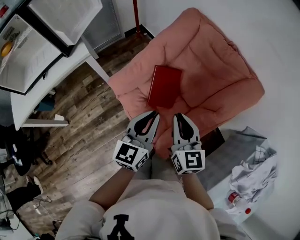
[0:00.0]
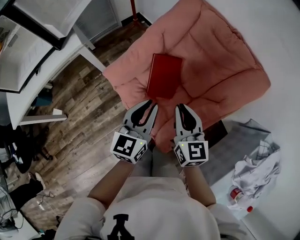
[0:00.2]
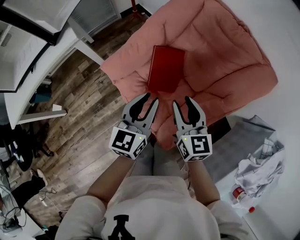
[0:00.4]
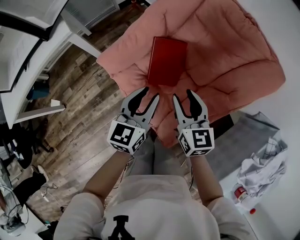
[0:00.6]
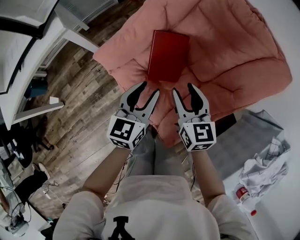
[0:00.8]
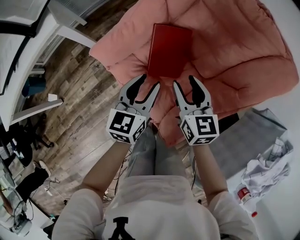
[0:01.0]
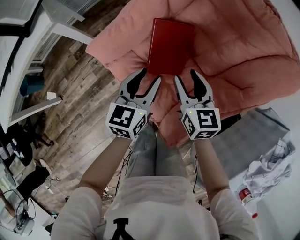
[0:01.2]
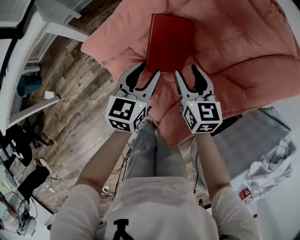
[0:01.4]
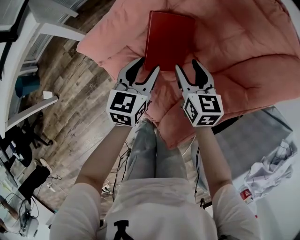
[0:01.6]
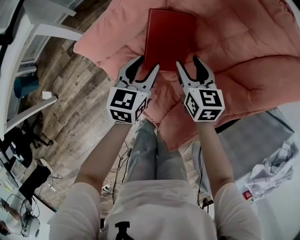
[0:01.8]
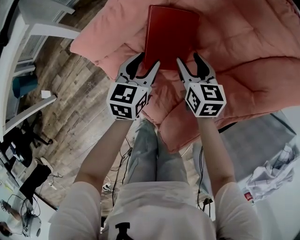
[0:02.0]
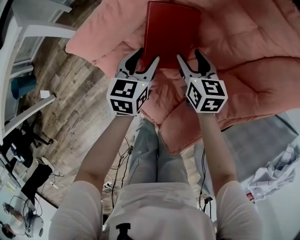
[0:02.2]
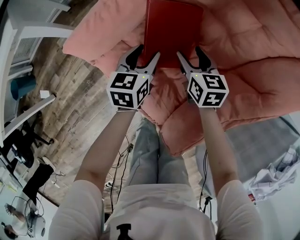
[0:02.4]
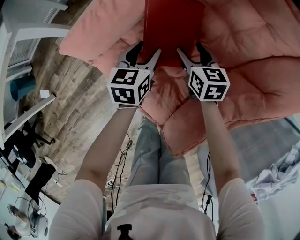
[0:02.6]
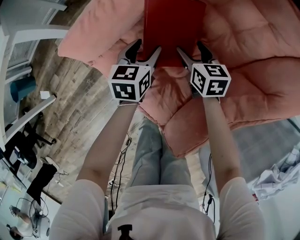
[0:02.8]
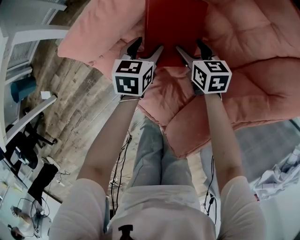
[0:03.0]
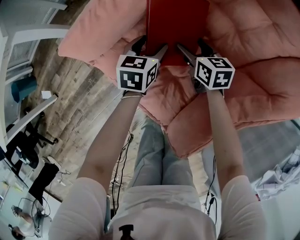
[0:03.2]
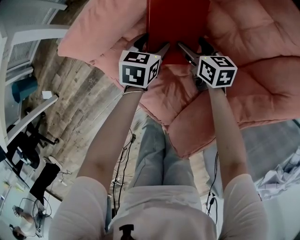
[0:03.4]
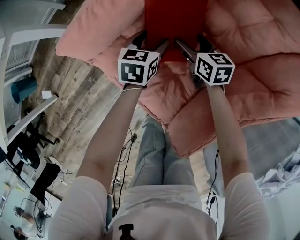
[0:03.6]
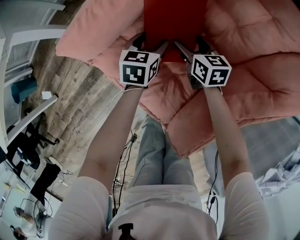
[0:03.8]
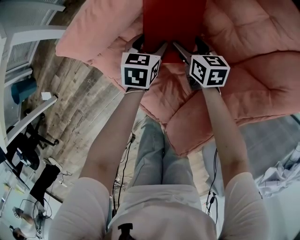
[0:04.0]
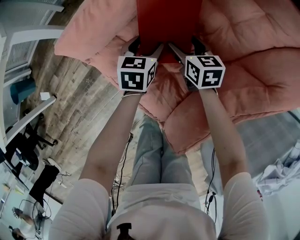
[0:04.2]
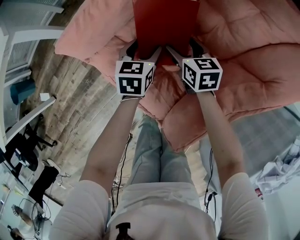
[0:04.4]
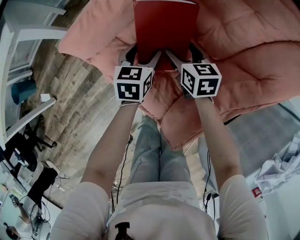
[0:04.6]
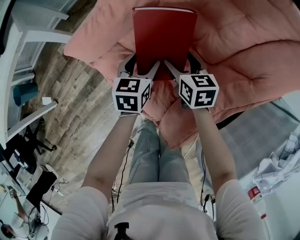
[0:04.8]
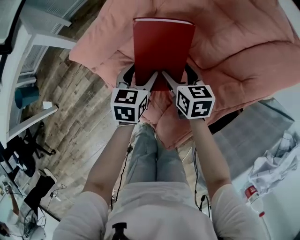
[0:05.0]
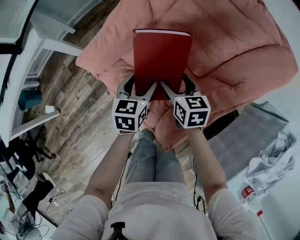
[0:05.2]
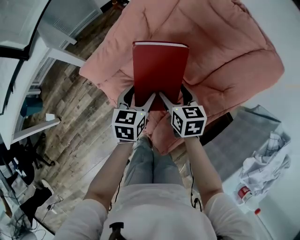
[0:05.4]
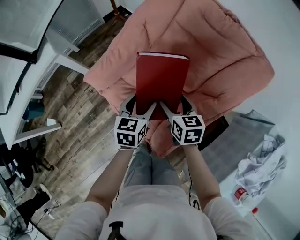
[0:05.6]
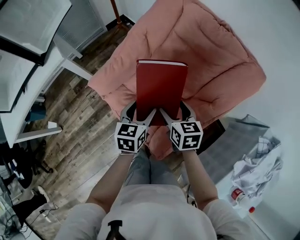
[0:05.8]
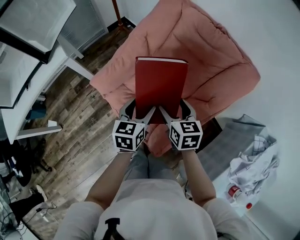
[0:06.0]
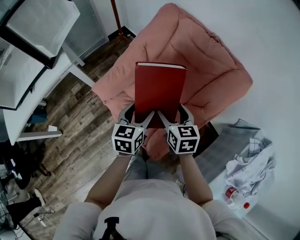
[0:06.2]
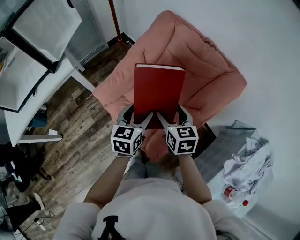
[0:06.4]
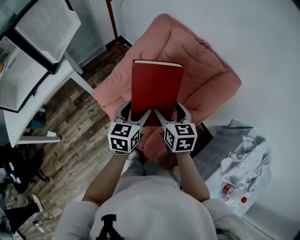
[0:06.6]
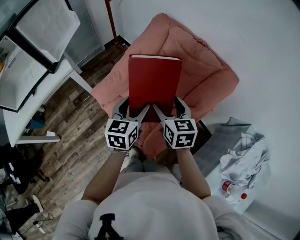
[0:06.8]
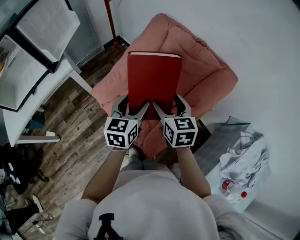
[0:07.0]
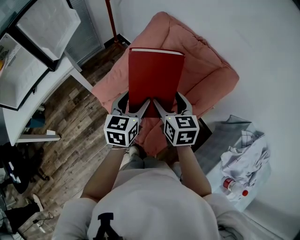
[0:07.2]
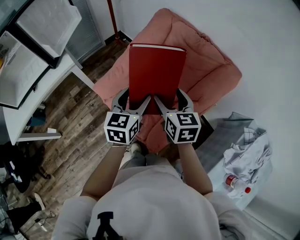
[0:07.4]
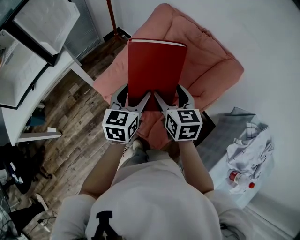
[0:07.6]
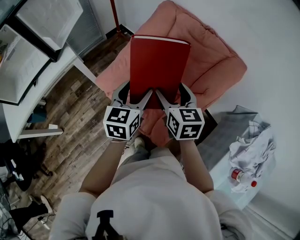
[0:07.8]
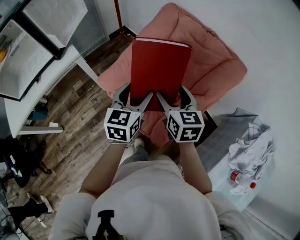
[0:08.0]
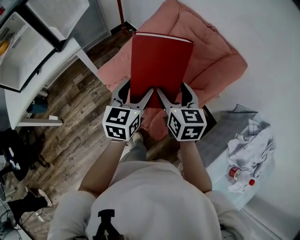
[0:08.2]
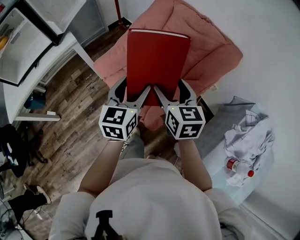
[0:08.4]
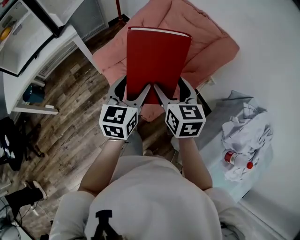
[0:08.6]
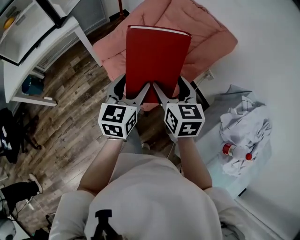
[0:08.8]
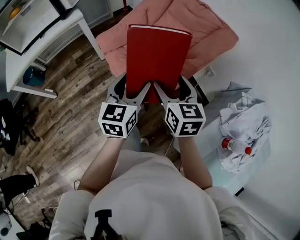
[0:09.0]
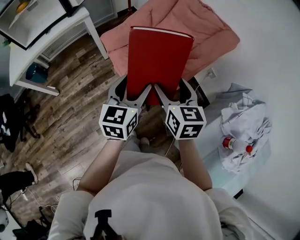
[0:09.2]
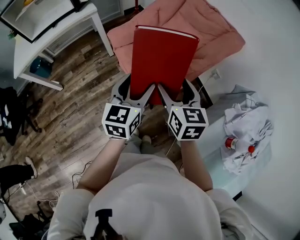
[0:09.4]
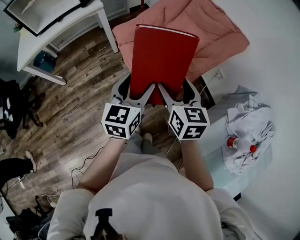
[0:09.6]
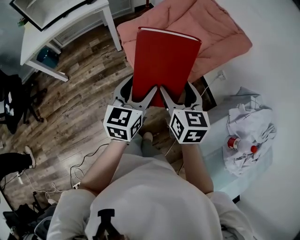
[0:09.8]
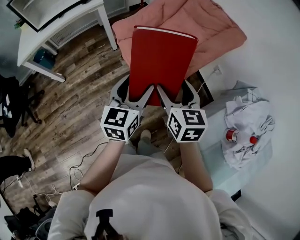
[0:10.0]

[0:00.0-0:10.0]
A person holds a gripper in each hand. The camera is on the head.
0:00.0 to 0:01.4: The two grippers go about 25 cm downward and forward. The left gripper opens up. The right gripper opens up.
0:01.4 to 0:02.8: The grippers both shift downward and forward by about 20 cm.
0:02.8 to 0:04.2: The grippers make only small movements.
0:04.2 to 0:05.8: Both grippers travel together upward and backward, some 25 cm.
0:05.8 to 0:07.2: Both grippers travel together upward, roughly 15 cm.
0:07.2 to 0:08.6: The two grippers go approximately 15 cm backward.
0:08.6 to 0:10.0: Both grippers travel together backward, some 20 cm.

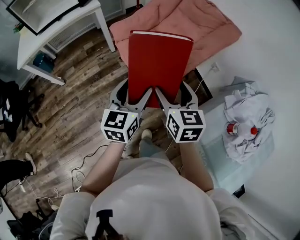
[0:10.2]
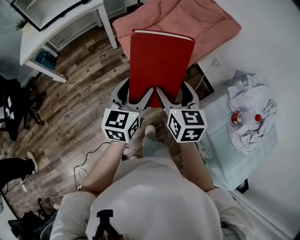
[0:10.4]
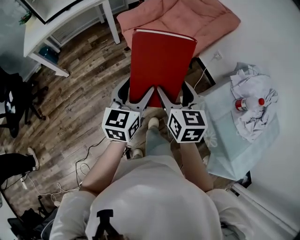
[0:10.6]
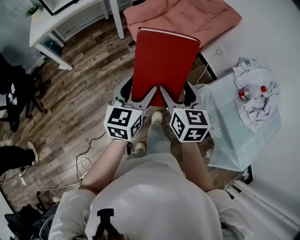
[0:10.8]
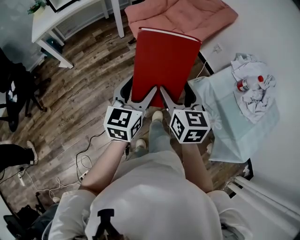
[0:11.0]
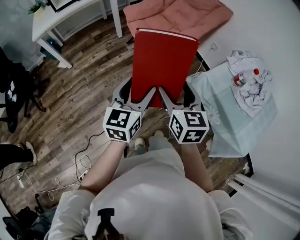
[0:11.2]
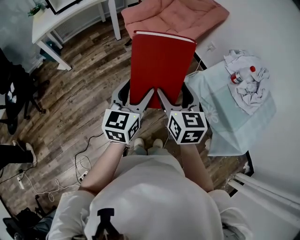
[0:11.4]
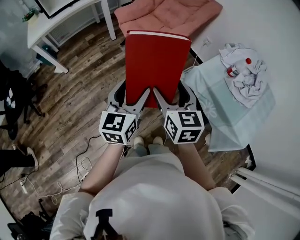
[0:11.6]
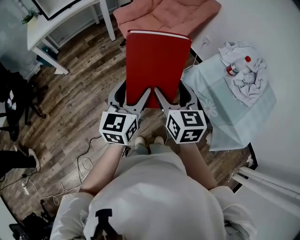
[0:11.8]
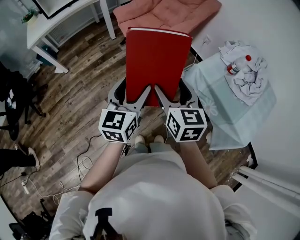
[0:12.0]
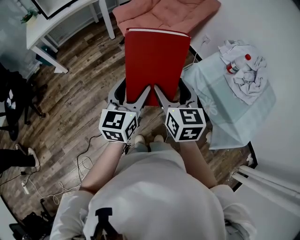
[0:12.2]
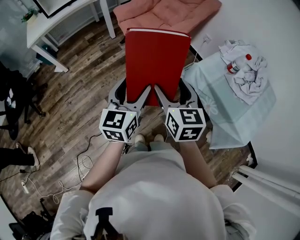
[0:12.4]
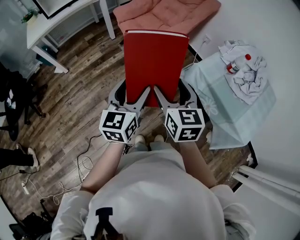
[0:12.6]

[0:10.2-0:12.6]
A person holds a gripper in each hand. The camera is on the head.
0:10.2 to 0:11.4: Both grippers move backward, roughly 30 cm.
0:11.4 to 0:12.6: There are only small adjustments of the grippers.

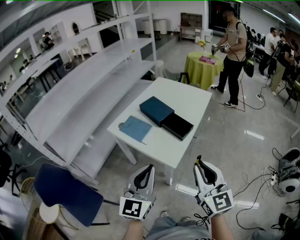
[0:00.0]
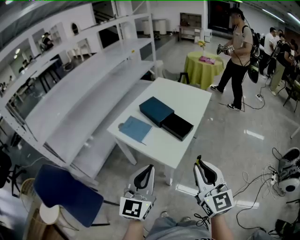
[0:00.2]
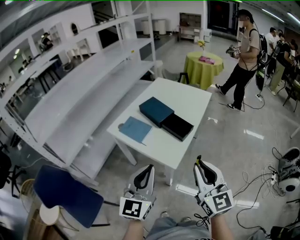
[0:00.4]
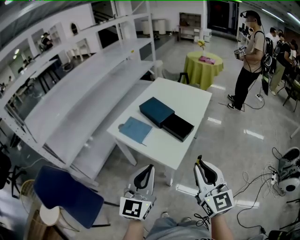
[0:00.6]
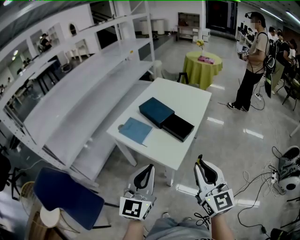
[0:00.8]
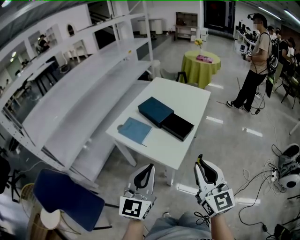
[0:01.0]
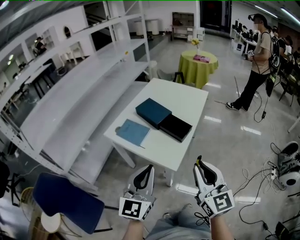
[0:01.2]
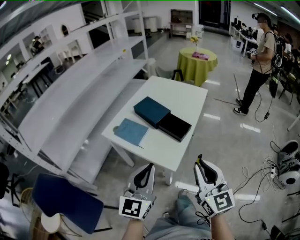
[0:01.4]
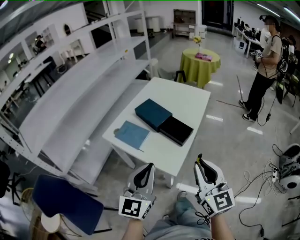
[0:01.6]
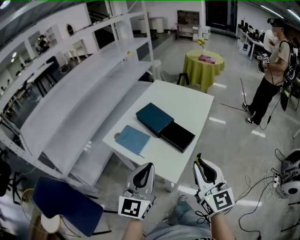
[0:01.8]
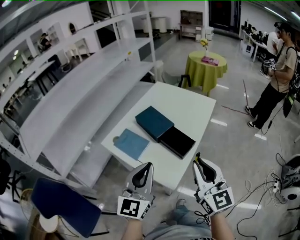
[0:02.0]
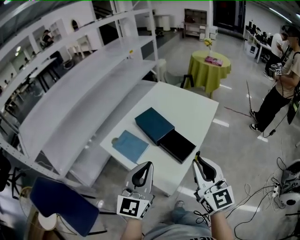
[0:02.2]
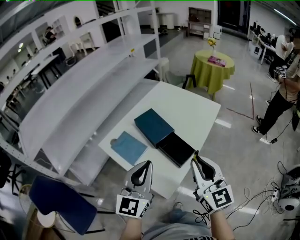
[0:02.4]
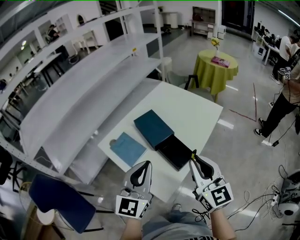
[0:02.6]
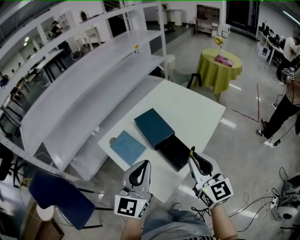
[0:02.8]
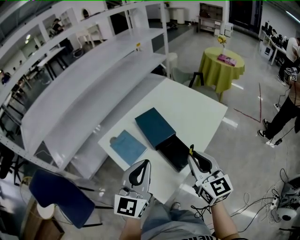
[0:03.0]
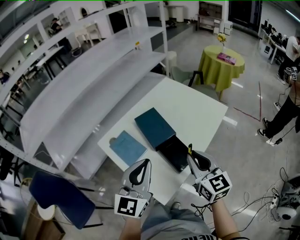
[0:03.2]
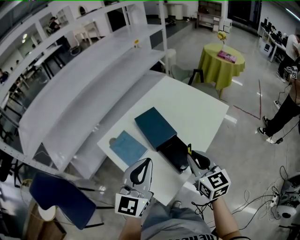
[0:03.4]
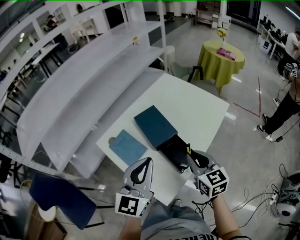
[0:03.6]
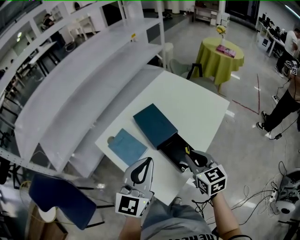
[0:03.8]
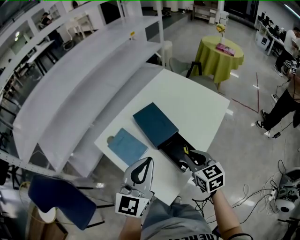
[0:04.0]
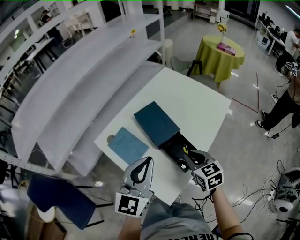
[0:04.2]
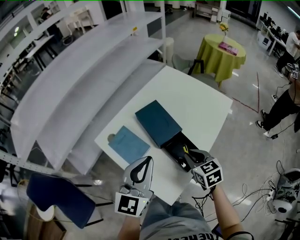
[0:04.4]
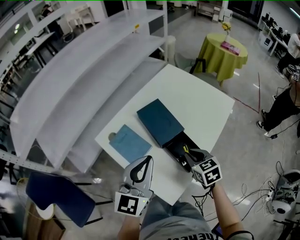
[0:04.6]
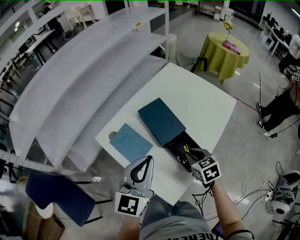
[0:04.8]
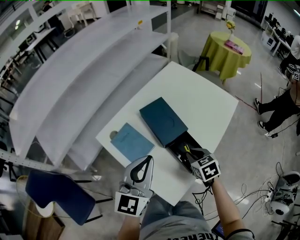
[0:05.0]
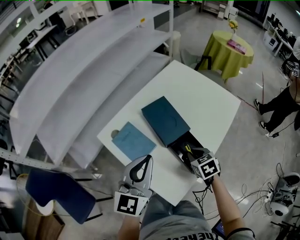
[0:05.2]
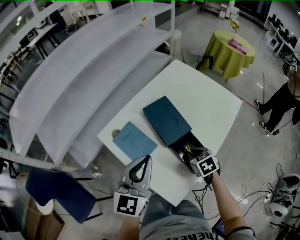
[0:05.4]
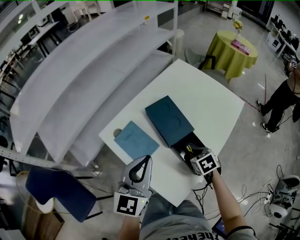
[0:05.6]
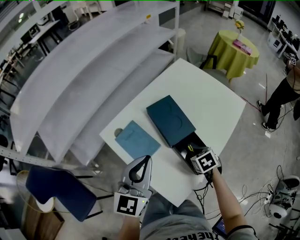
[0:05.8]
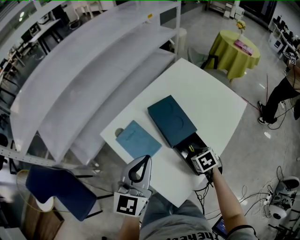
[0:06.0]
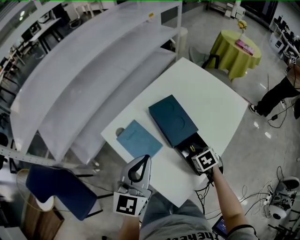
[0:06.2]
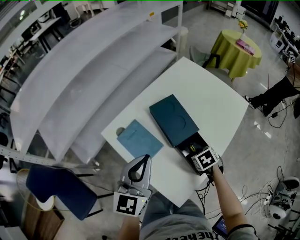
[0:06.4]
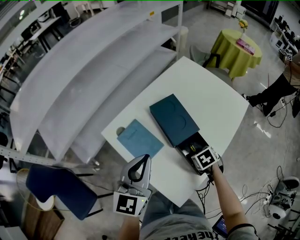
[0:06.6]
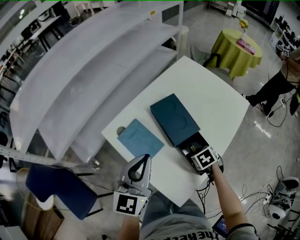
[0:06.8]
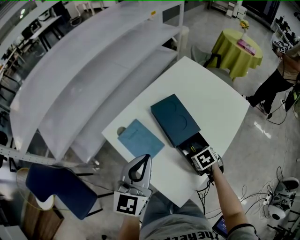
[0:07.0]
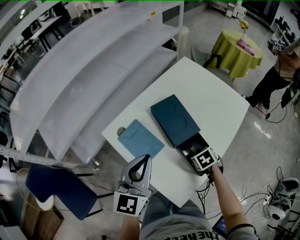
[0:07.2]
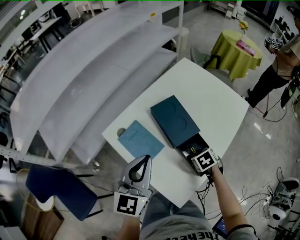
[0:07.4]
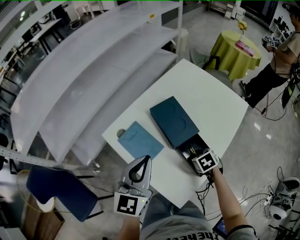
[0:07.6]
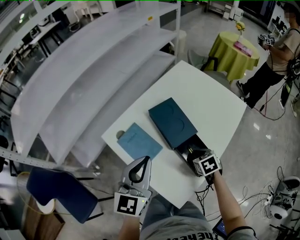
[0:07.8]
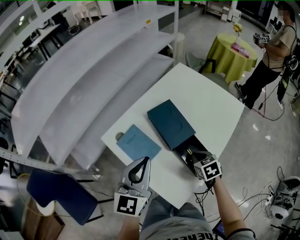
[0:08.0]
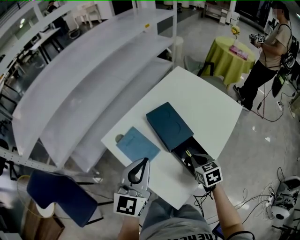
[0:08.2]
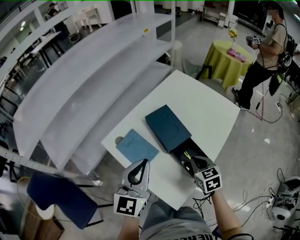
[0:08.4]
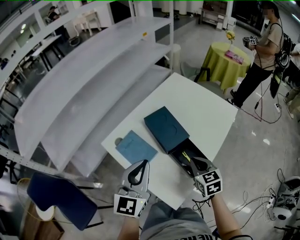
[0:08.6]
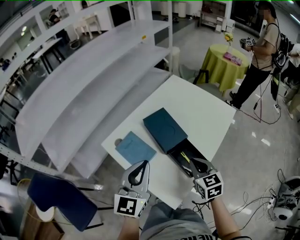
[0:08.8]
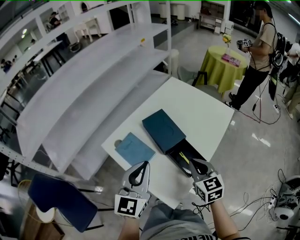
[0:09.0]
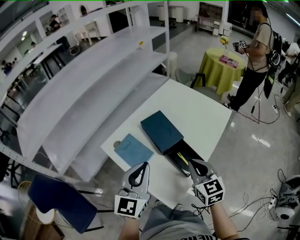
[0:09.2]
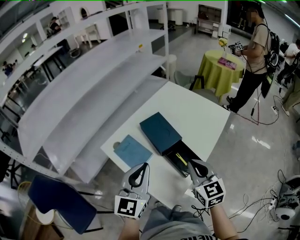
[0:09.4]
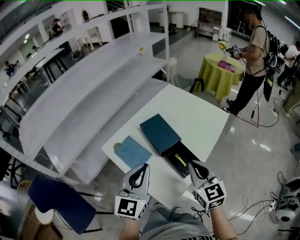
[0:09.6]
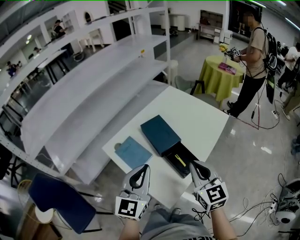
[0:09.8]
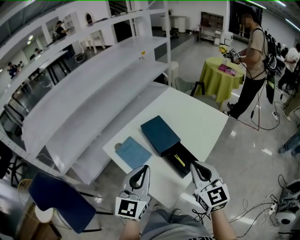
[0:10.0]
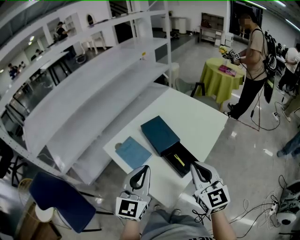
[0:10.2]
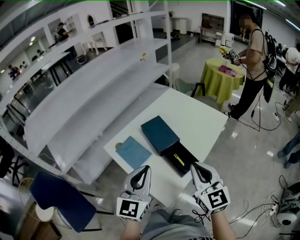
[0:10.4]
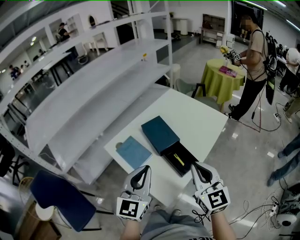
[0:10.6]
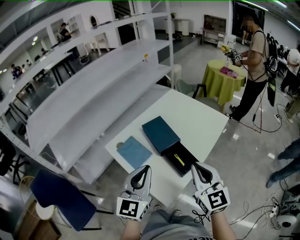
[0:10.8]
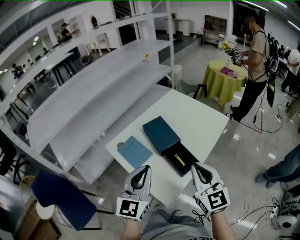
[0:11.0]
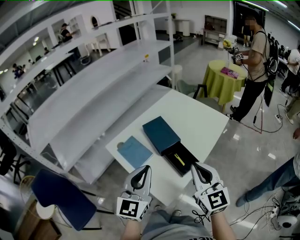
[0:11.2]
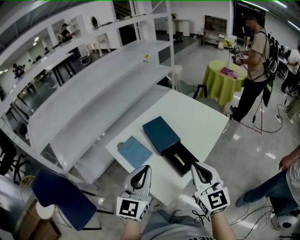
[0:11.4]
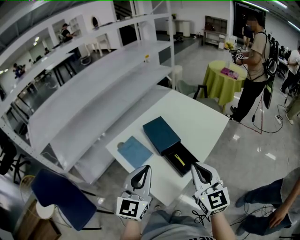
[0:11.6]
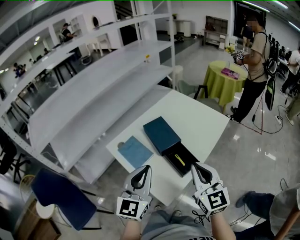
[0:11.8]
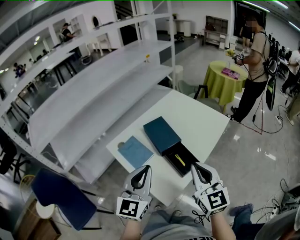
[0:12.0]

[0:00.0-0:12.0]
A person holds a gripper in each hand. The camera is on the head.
0:00.0 to 0:01.6: Both grippers move forward, about 5 cm.
0:01.6 to 0:03.0: The grippers both shift forward by roughly 20 cm.
0:03.0 to 0:04.4: The right gripper heads downward and forward, covering some 15 cm, and tips its fingers downward by roughly 30 degrees; the left gripper moves forward, roughly 5 cm.
0:04.4 to 0:06.0: The left gripper heads to the left, covering approximately 5 cm. Meanwhile the right gripper travels downward by roughly 10 cm, and points its fingers some 30 degrees further downward.
0:06.0 to 0:07.6: The grippers make only small movements.
0:07.6 to 0:09.0: The left gripper changes place by approximately 5 cm. Meanwhile the right gripper shifts some 20 cm upward, and tips its fingers upward by about 50 degrees.
0:09.0 to 0:10.4: The right gripper goes some 15 cm upward and backward, and rotates some 20 degrees. The left gripper moves backward, about 5 cm.
0:10.4 to 0:12.0: The grippers stay close to where they were, moving slightly.
